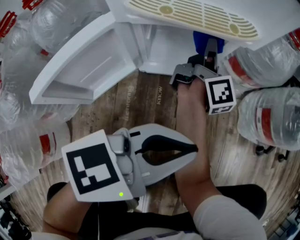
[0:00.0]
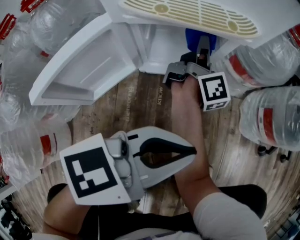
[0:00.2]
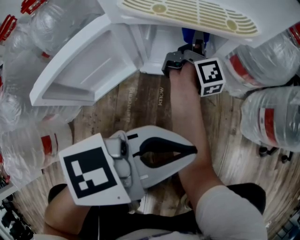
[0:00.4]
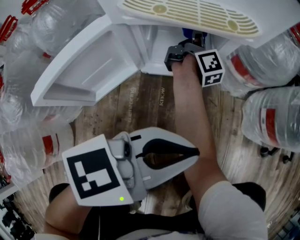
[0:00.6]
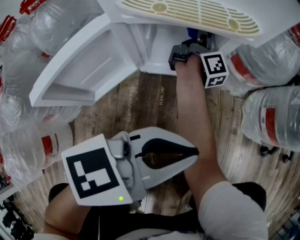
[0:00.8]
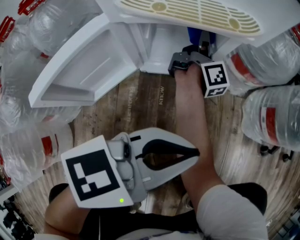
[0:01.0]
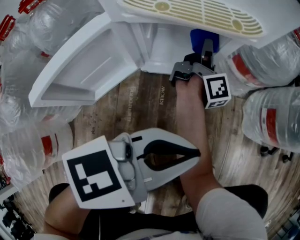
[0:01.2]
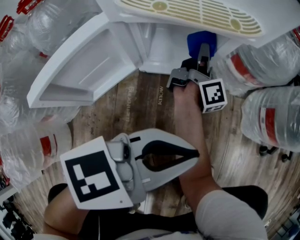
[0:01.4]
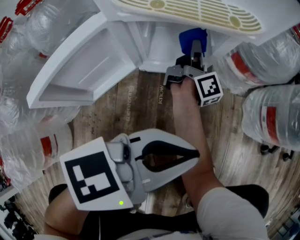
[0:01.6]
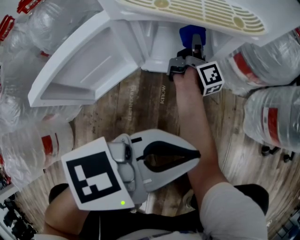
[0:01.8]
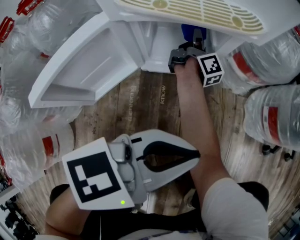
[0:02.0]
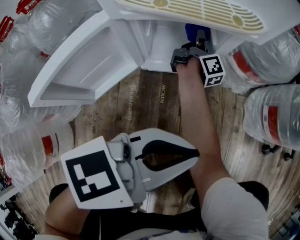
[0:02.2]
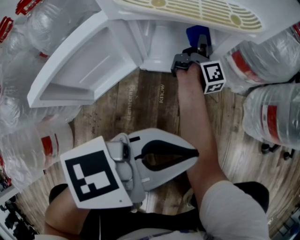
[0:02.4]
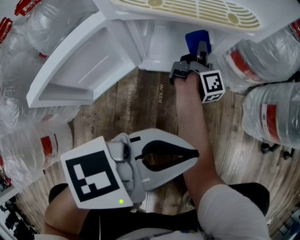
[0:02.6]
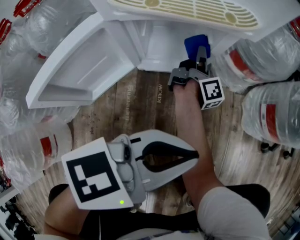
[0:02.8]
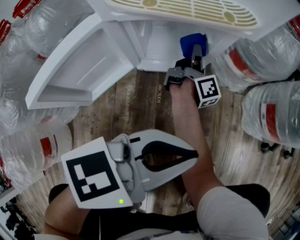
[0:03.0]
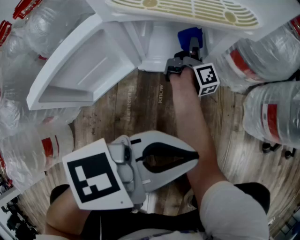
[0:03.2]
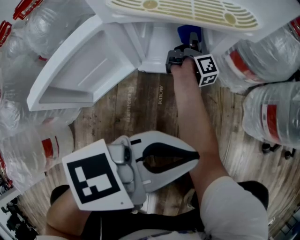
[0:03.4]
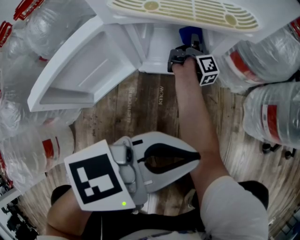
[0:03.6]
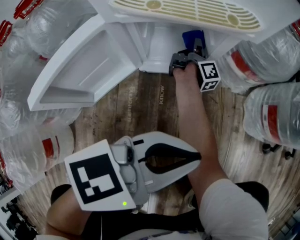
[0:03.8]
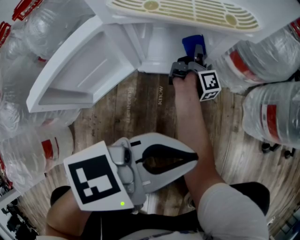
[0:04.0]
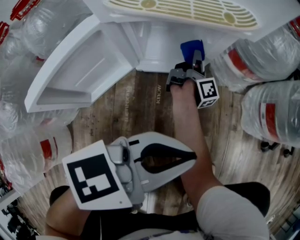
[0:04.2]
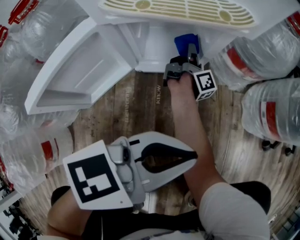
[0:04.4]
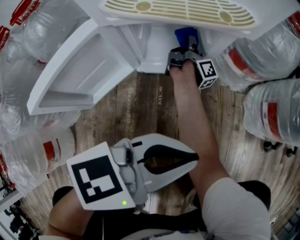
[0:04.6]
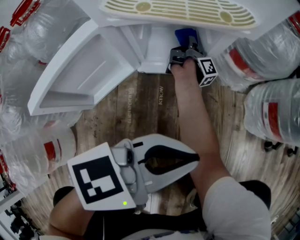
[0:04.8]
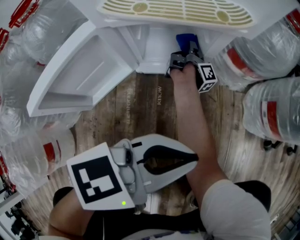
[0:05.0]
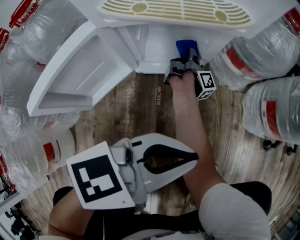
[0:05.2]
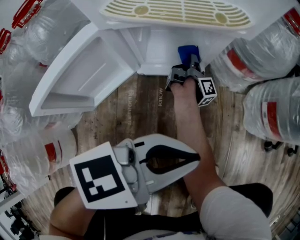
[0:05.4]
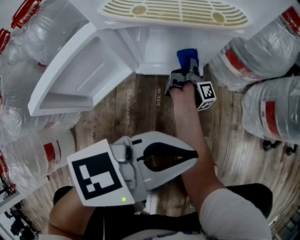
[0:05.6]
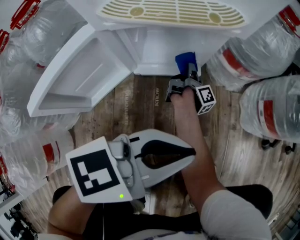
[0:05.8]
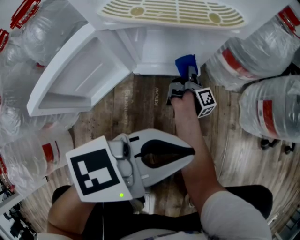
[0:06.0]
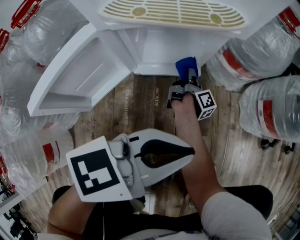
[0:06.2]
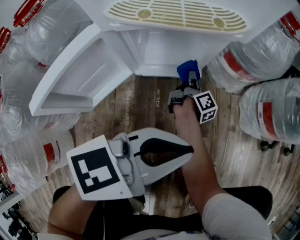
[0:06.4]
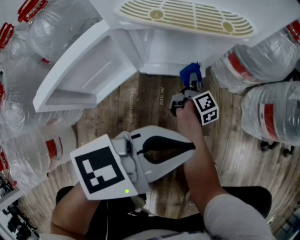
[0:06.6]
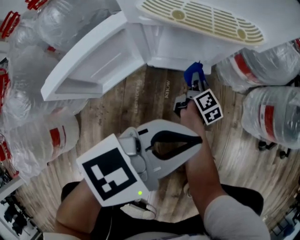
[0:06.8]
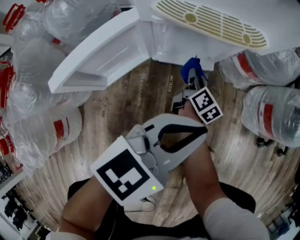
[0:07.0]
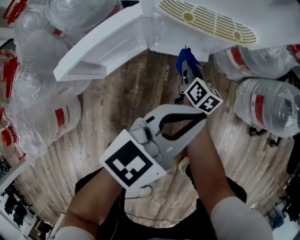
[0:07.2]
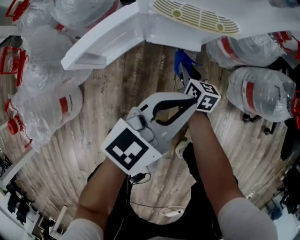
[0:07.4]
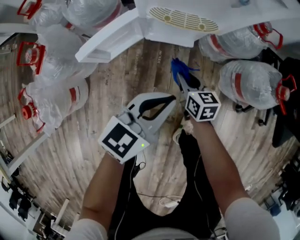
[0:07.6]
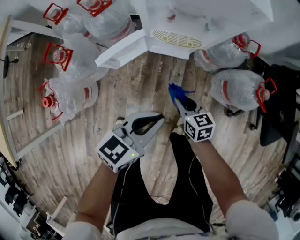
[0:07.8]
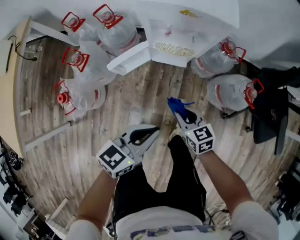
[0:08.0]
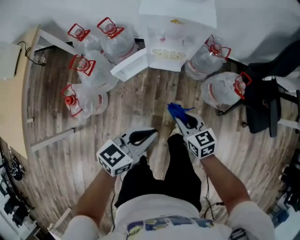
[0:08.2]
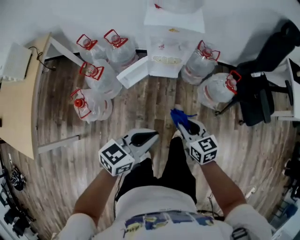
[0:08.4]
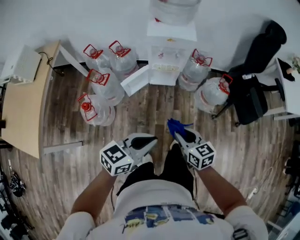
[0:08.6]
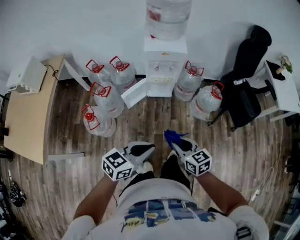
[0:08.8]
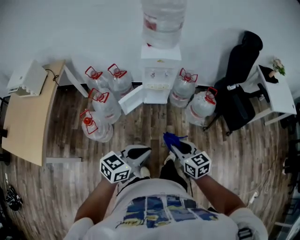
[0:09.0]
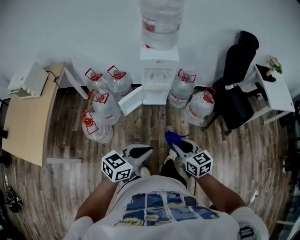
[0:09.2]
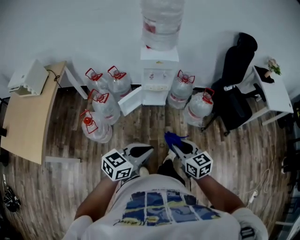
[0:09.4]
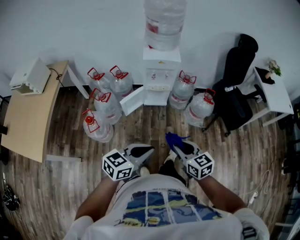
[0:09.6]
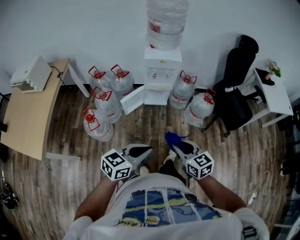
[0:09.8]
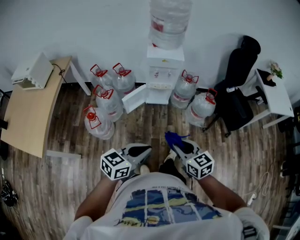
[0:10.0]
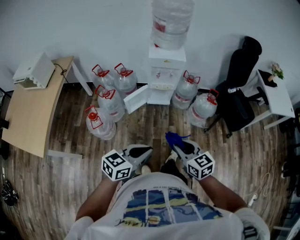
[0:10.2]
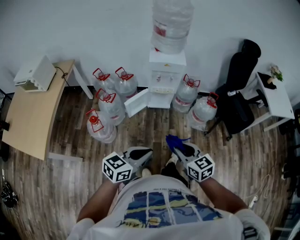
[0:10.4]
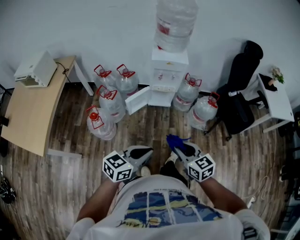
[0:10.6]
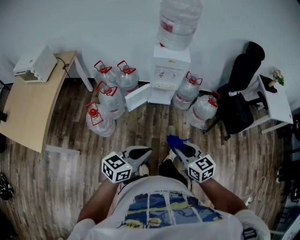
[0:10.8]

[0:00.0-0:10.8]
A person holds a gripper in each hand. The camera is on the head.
0:00.0 to 0:01.6: The right gripper heads downward, covering approximately 10 cm.
0:01.6 to 0:03.0: The right gripper travels to the left and back again, some 5 cm each way.
0:03.0 to 0:04.6: The right gripper goes left and right, about 5 cm each way, reversing 2 times, and changes its angle by roughly 20 degrees.
0:04.6 to 0:06.2: The right gripper heads to the right, backward and downward, covering roughly 15 cm.
0:06.2 to 0:07.8: The grippers both shift upward by about 35 cm. The left gripper turns by some 30 degrees, while the right gripper twists approximately 80 degrees counterclockwise, seen from behind.
0:07.8 to 0:09.2: The grippers both shift upward and backward by about 60 cm.
0:09.2 to 0:10.8: The right gripper is displaced backward by about 5 cm; the left gripper travels to the left and backward by some 10 cm.

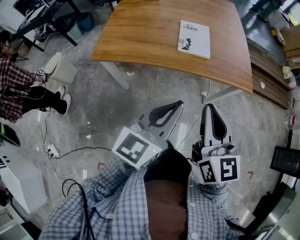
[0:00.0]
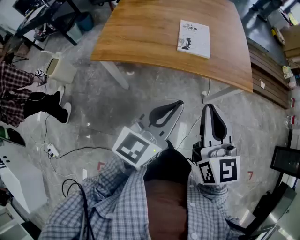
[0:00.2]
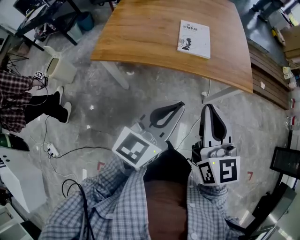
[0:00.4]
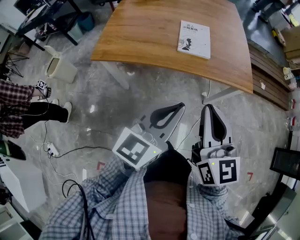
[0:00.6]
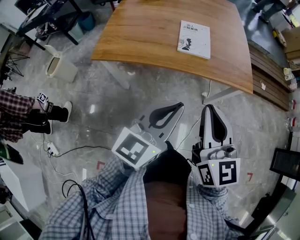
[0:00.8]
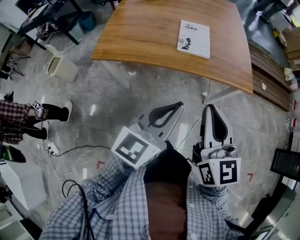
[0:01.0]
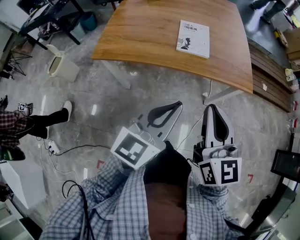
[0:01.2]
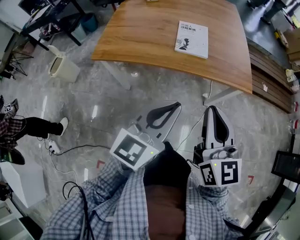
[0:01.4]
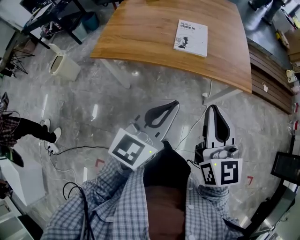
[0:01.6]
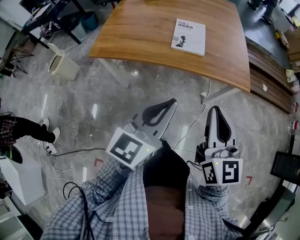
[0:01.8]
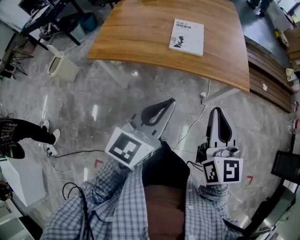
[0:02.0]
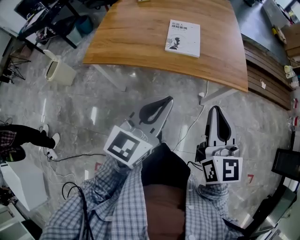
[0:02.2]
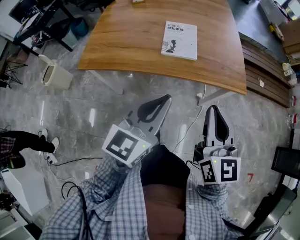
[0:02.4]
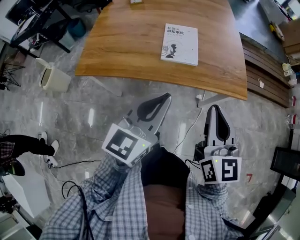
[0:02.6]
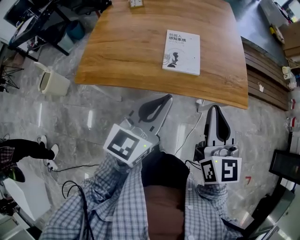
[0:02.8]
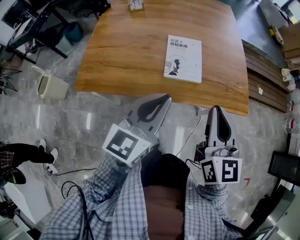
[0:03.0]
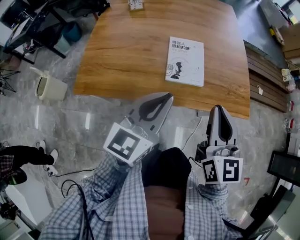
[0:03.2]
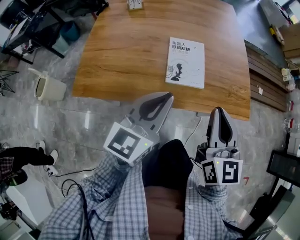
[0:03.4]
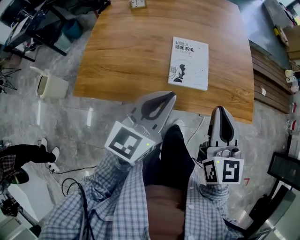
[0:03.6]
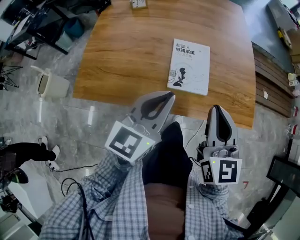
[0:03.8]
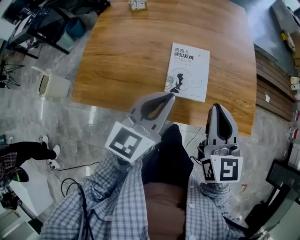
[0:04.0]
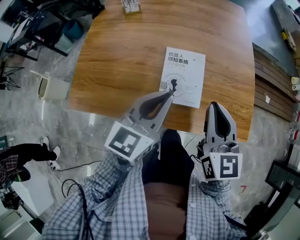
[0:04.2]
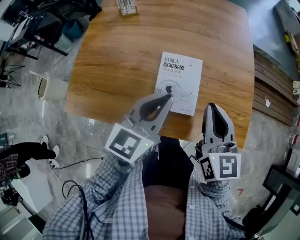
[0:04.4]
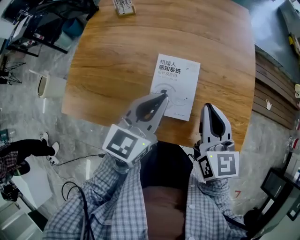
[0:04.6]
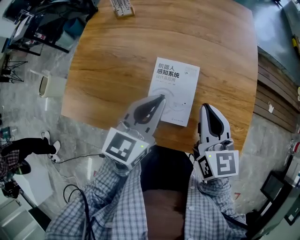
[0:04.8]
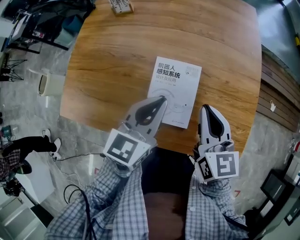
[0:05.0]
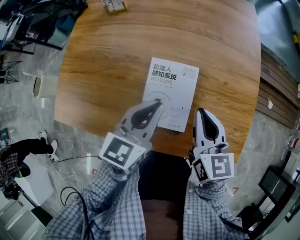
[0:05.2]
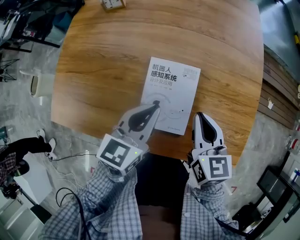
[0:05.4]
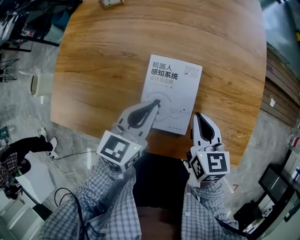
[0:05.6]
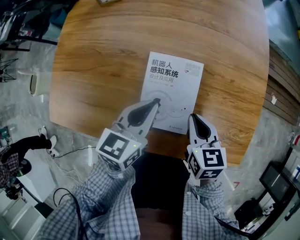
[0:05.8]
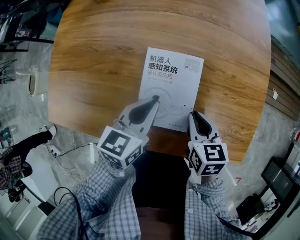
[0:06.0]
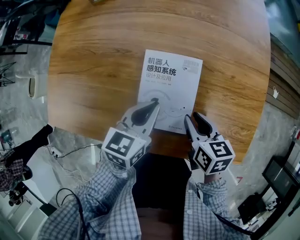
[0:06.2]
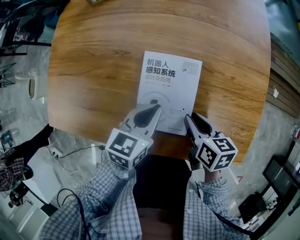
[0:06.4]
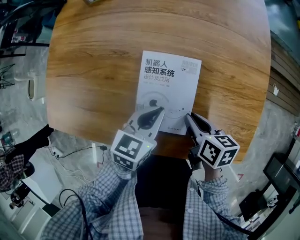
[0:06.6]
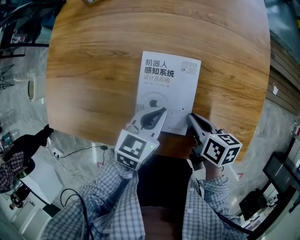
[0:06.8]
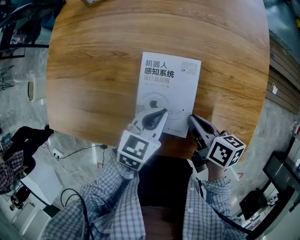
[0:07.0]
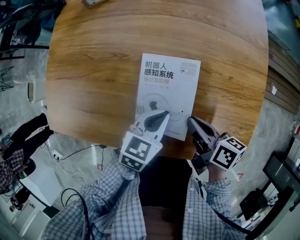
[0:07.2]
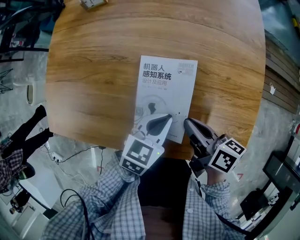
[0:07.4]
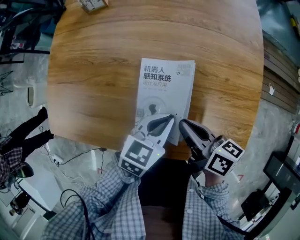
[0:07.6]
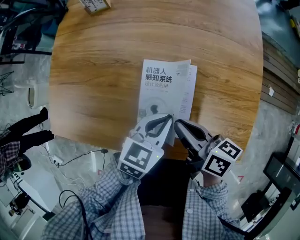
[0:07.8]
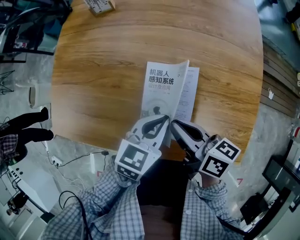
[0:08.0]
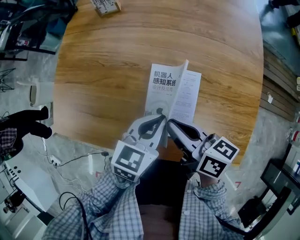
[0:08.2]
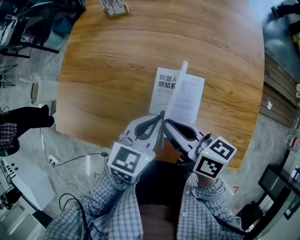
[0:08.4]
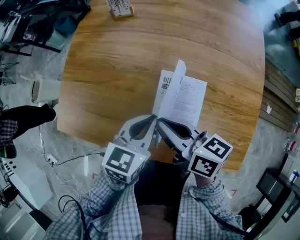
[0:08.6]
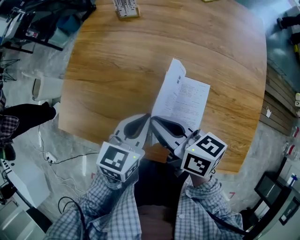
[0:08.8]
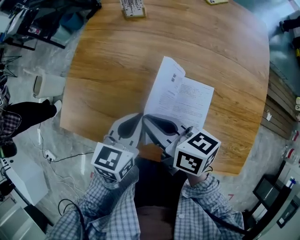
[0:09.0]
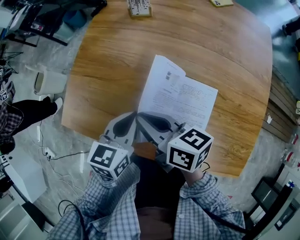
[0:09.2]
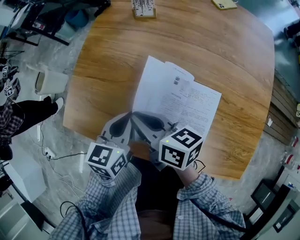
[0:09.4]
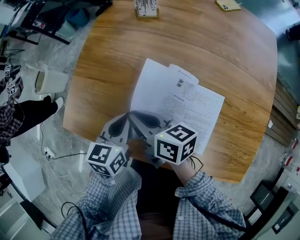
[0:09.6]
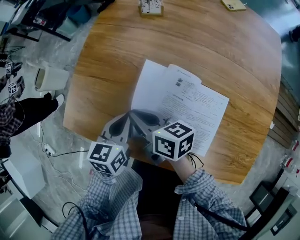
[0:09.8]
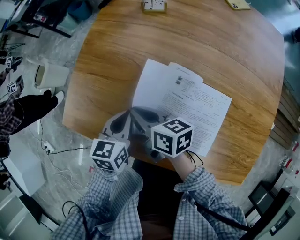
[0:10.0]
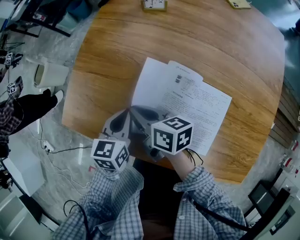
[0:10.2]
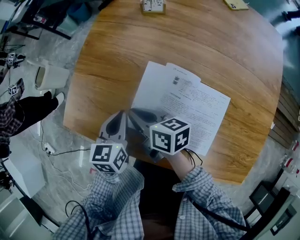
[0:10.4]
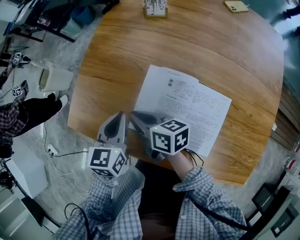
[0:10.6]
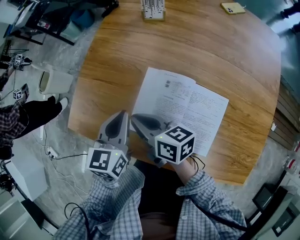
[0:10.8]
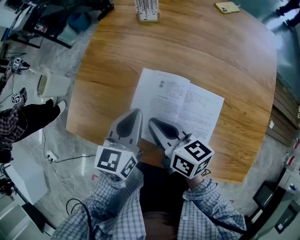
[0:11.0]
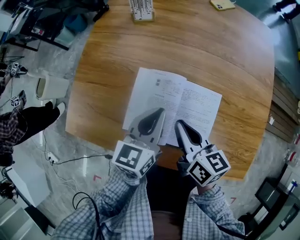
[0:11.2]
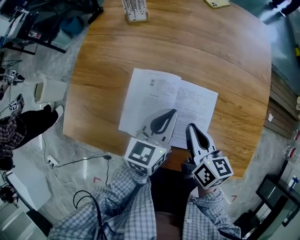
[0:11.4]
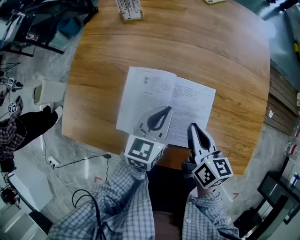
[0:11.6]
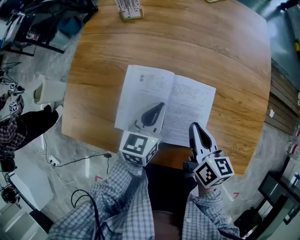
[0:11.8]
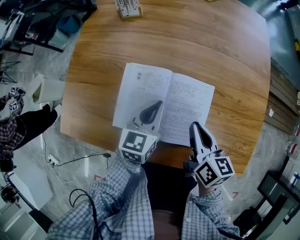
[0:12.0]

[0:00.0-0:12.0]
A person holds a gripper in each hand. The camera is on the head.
0:00.0 to 0:01.6: The right gripper heads to the right, covering roughly 5 cm.
0:01.6 to 0:03.0: Both grippers travel together forward, approximately 20 cm.
0:03.0 to 0:04.4: The two grippers go some 20 cm forward.
0:04.4 to 0:06.0: The left gripper heads downward and forward, covering about 15 cm, and changes its angle by approximately 20 degrees, while the right gripper goes about 20 cm downward, and points its fingers about 30 degrees further downward.
0:06.0 to 0:07.6: The right gripper moves upward, some 5 cm, and turns by approximately 40 degrees. Meanwhile the left gripper travels to the right by about 5 cm.
0:07.6 to 0:09.0: The right gripper moves to the left and upward, approximately 20 cm, and changes its angle by approximately 20 degrees, while the left gripper travels to the left by approximately 20 cm, and changes its angle by some 20 degrees.
0:09.0 to 0:10.4: The left gripper goes about 15 cm to the left, downward and forward, and turns by roughly 20 degrees; the right gripper goes some 15 cm downward, to the left and forward.
0:10.4 to 0:12.0: The left gripper reaches roughly 10 cm upward, then returns, and turns by about 20 degrees. The right gripper changes place by roughly 25 cm, and swivels approximately 40 degrees.

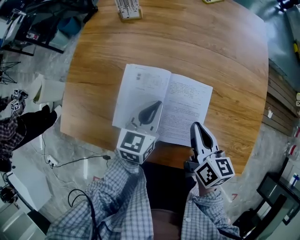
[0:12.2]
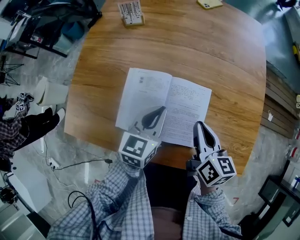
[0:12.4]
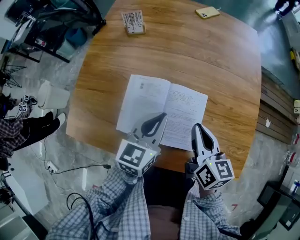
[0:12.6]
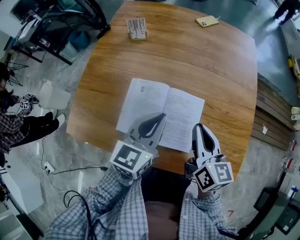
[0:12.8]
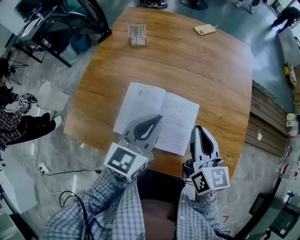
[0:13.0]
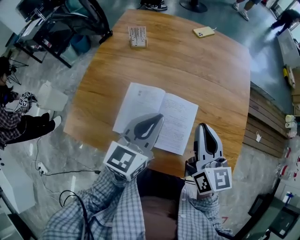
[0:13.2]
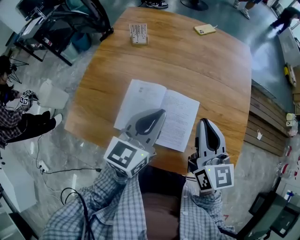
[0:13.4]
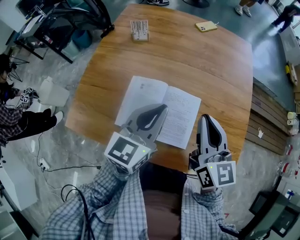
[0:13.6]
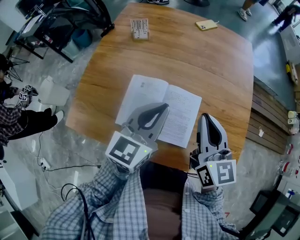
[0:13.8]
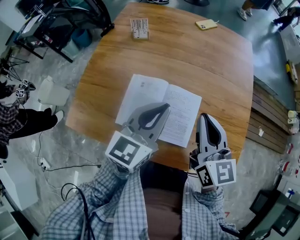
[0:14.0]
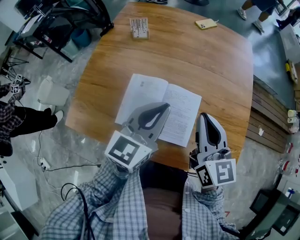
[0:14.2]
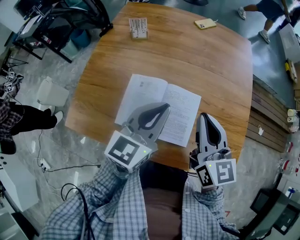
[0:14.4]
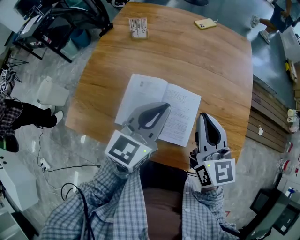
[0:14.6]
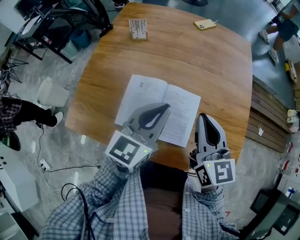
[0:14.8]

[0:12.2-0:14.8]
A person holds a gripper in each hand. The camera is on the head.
0:12.2 to 0:13.4: The grippers both shift upward by roughly 15 cm. The right gripper rotates about 30 degrees.
0:13.4 to 0:14.8: The grippers make only small movements.
